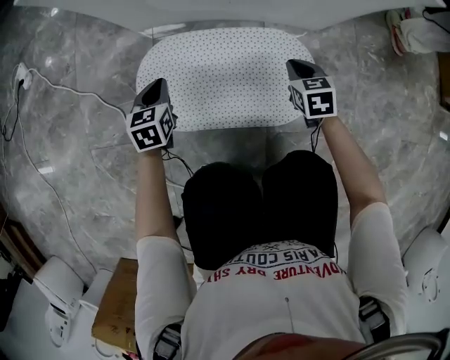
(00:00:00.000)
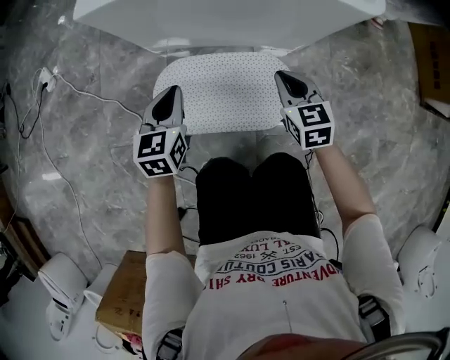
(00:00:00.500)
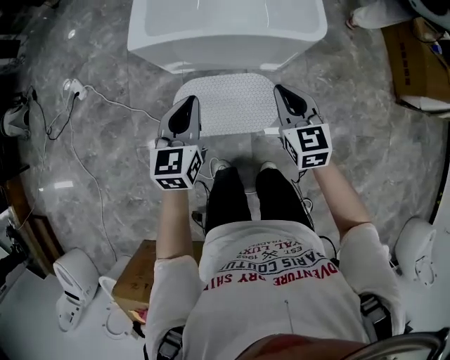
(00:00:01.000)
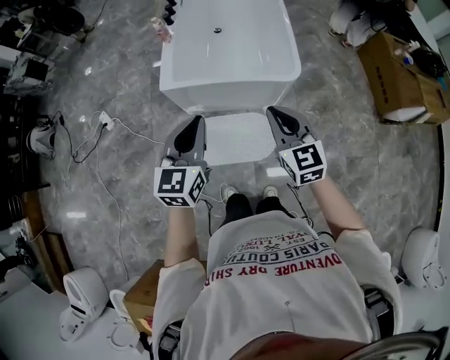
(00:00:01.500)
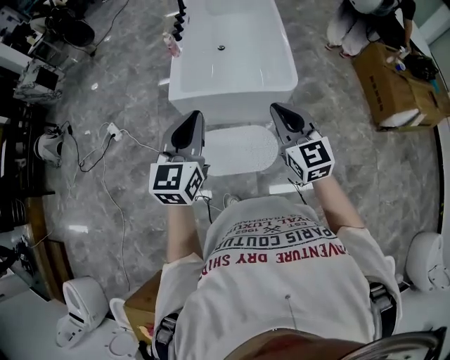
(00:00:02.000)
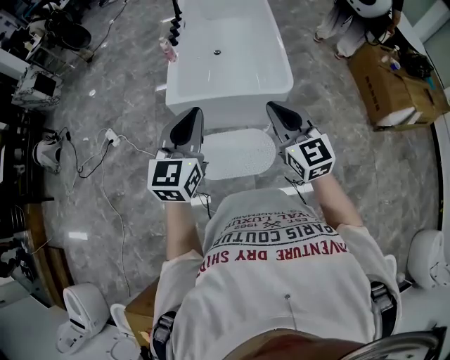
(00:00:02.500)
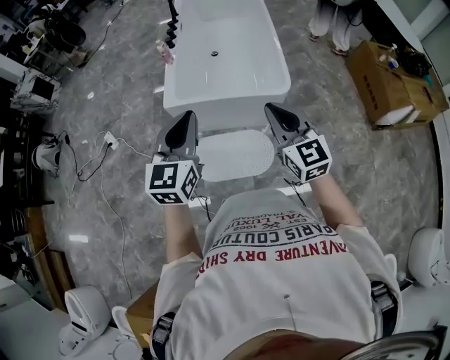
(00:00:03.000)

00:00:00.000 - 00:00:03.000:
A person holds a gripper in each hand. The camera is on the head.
00:00:00.000 - 00:00:01.500: The grippers both shift upward by some 80 cm. The left gripper angles its fingers upward, by some 30 degrees. The right gripper tilts its fingers roughly 40 degrees upward.
00:00:01.500 - 00:00:03.000: Both grippers move upward, approximately 10 cm.

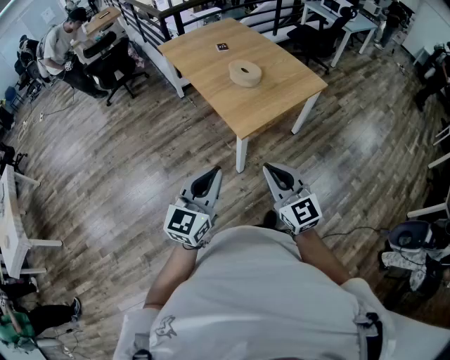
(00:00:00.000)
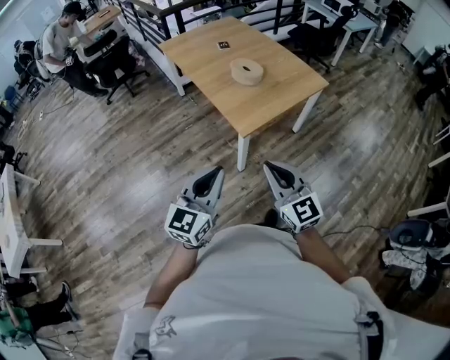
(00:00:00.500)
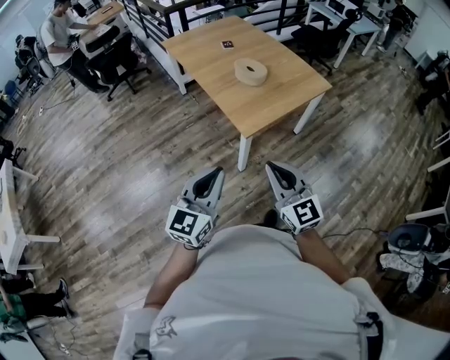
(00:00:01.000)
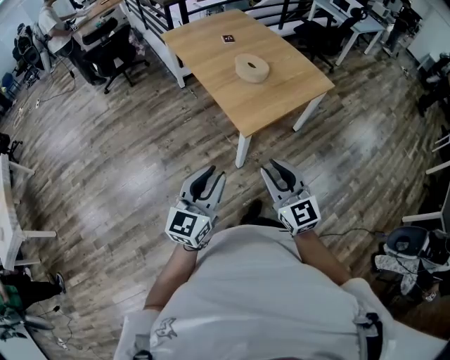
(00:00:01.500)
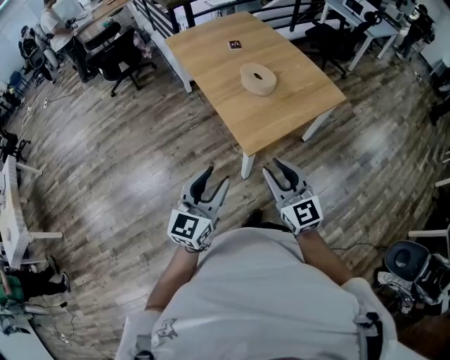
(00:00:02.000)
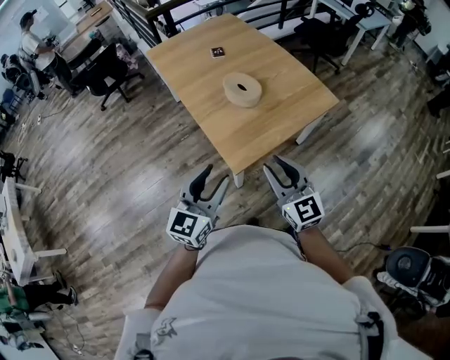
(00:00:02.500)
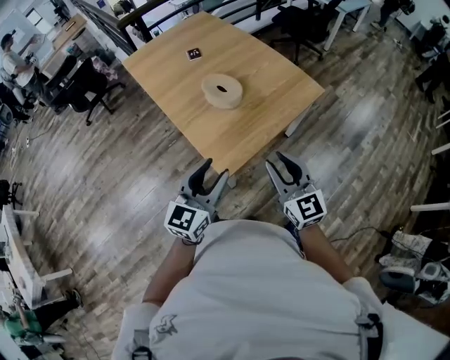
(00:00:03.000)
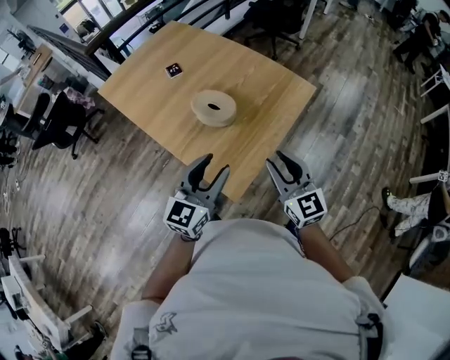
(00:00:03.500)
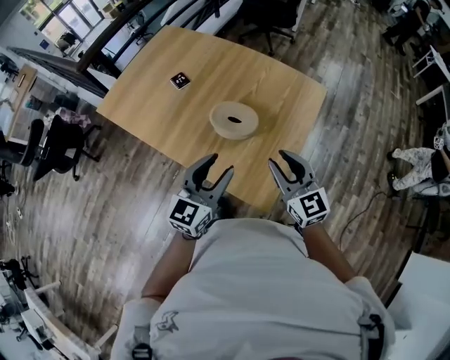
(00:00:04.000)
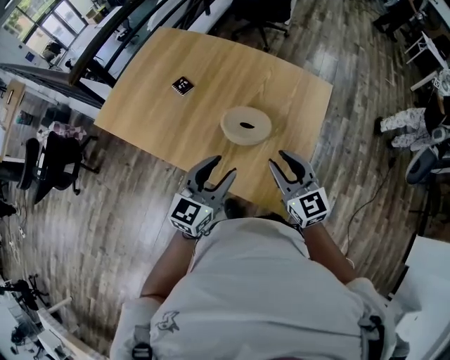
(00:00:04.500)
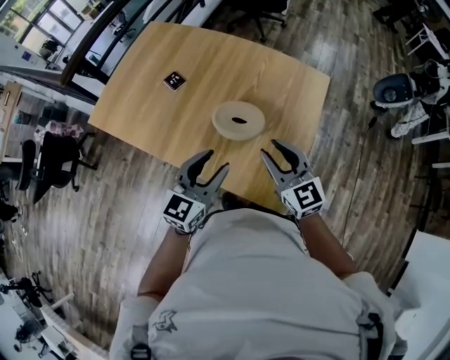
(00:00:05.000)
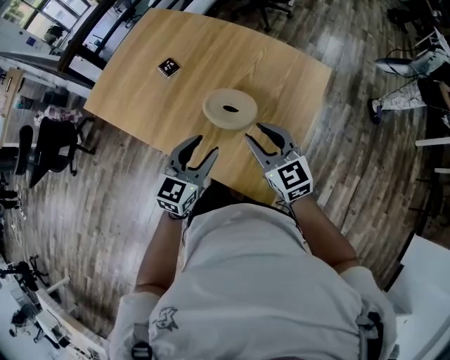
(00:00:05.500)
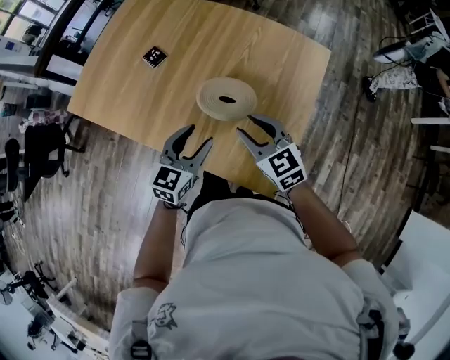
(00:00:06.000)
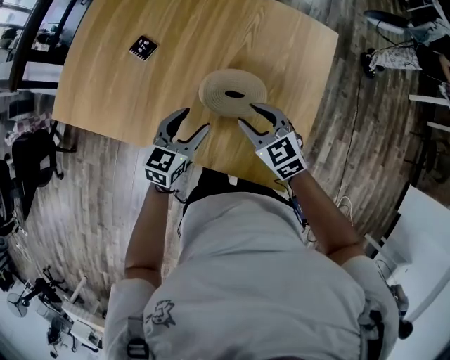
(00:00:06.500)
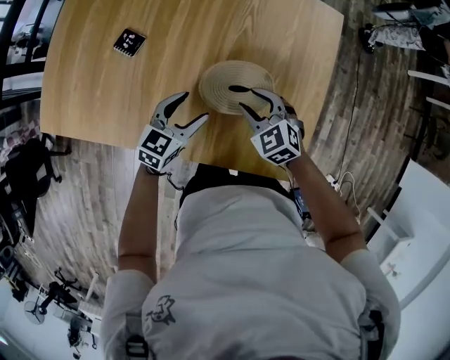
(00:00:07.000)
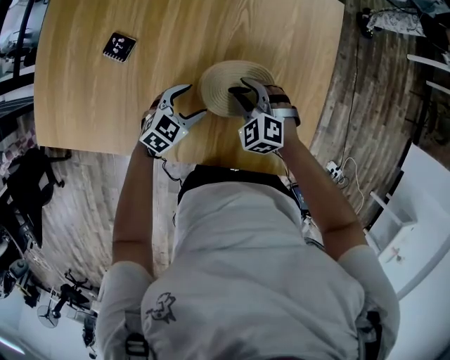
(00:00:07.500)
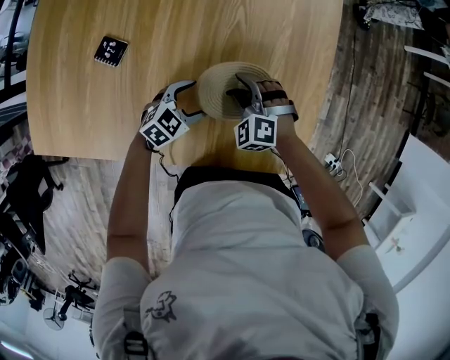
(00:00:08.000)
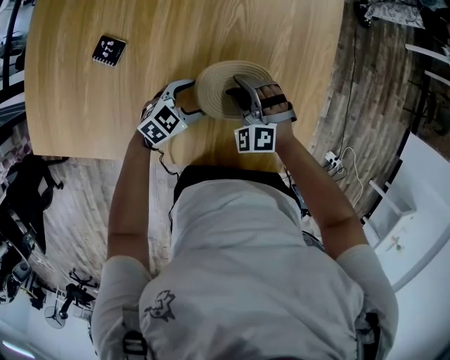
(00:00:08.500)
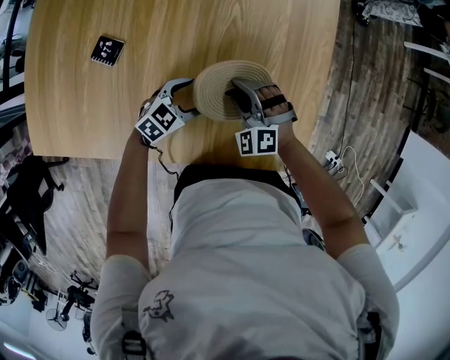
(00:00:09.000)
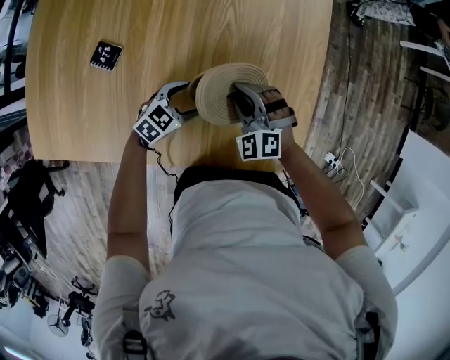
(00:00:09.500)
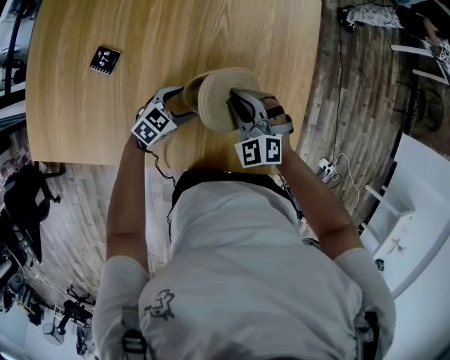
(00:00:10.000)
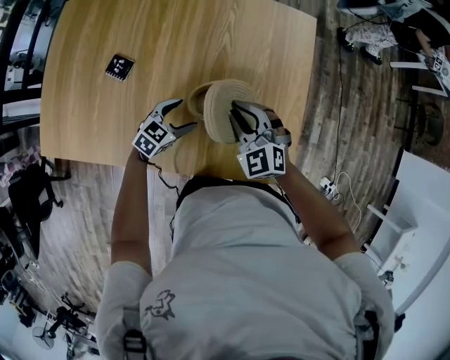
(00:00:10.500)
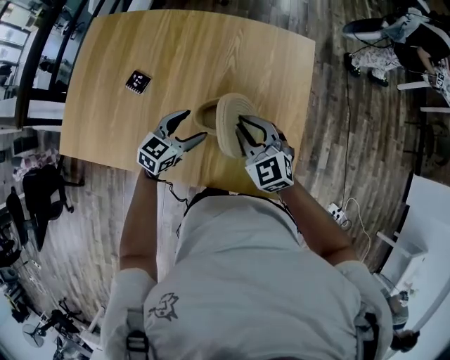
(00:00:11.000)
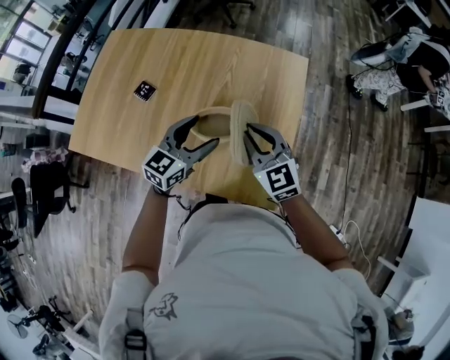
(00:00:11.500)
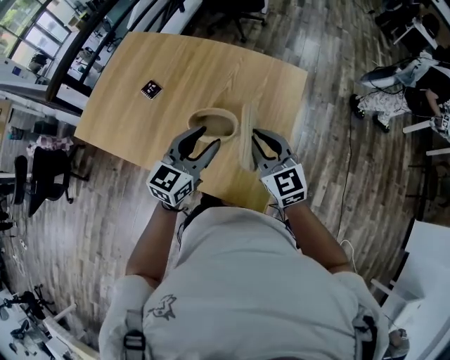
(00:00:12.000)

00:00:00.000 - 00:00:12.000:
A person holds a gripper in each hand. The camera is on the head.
00:00:00.000 - 00:00:02.000: The grippers both shift forward by about 10 cm. The left gripper opens. The right gripper opens its fingers.
00:00:02.000 - 00:00:04.000: The right gripper moves roughly 30 cm, and rotates approximately 30 degrees. The left gripper ends up some 40 cm from where it was, and changes its angle by roughly 30 degrees.
00:00:04.000 - 00:00:06.000: Both grippers move downward, forward and to the left, some 15 cm.
00:00:06.000 - 00:00:08.000: Both grippers travel together downward, roughly 20 cm. The right gripper swivels about 50 degrees. The left gripper rotates approximately 50 degrees, and opens.
00:00:08.000 - 00:00:10.000: The right gripper is displaced upward by roughly 10 cm, and closes.
00:00:10.000 - 00:00:12.000: The left gripper travels upward by roughly 35 cm, changes its angle by some 50 degrees, and closes its fingers, while the right gripper goes roughly 20 cm upward, and changes its angle by roughly 40 degrees.

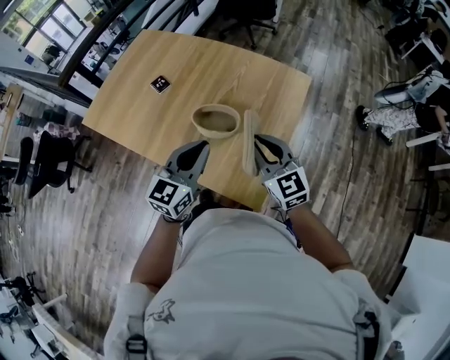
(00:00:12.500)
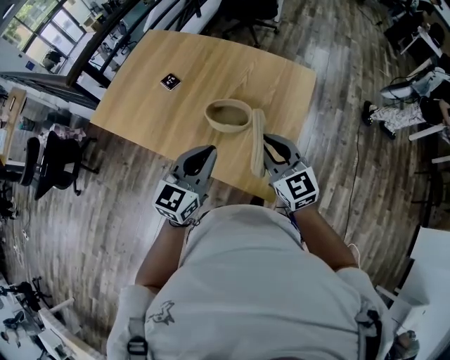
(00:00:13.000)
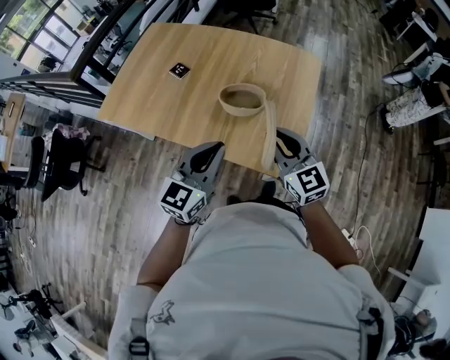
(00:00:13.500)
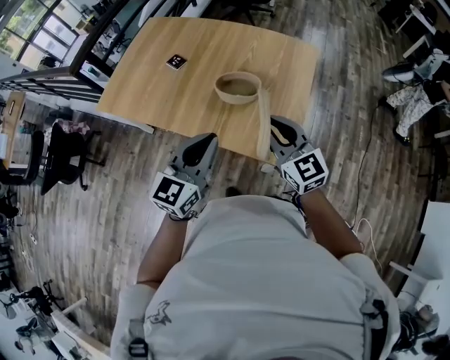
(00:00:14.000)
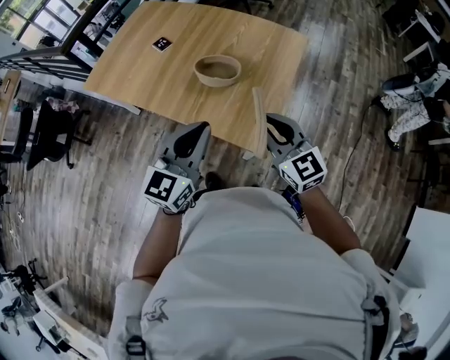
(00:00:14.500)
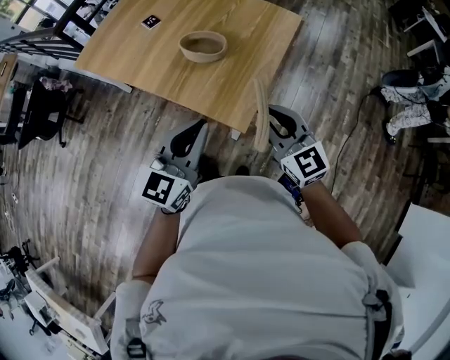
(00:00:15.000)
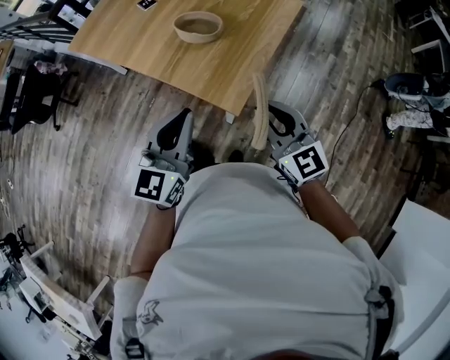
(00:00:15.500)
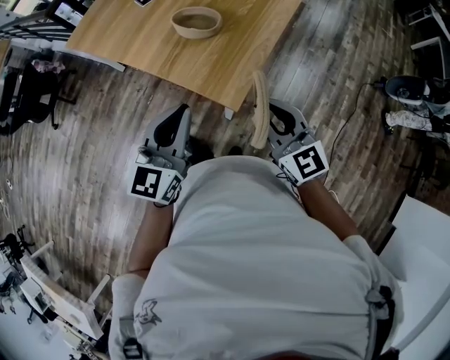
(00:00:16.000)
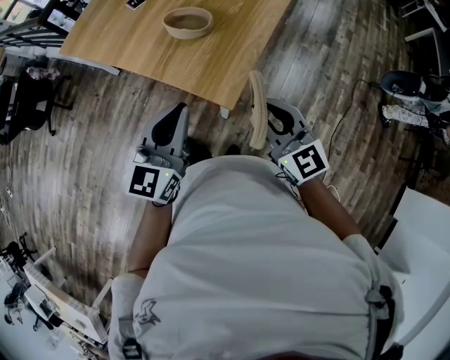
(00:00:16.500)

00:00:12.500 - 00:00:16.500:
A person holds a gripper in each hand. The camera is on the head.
00:00:12.500 - 00:00:14.500: The two grippers go some 15 cm backward.
00:00:14.500 - 00:00:16.500: Both grippers travel together backward and to the right, about 10 cm.
